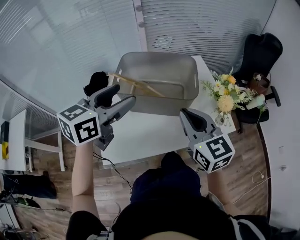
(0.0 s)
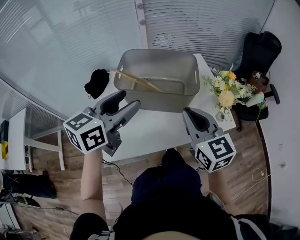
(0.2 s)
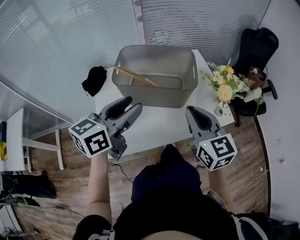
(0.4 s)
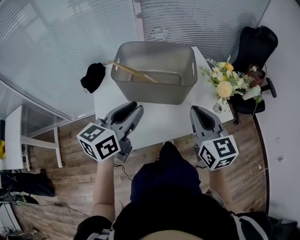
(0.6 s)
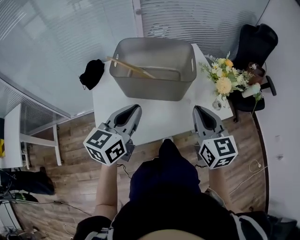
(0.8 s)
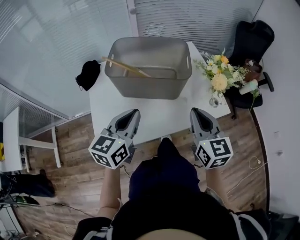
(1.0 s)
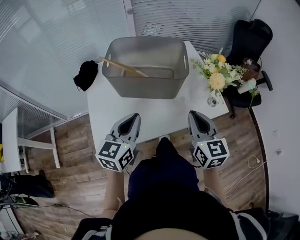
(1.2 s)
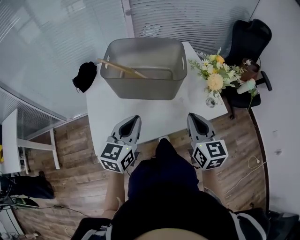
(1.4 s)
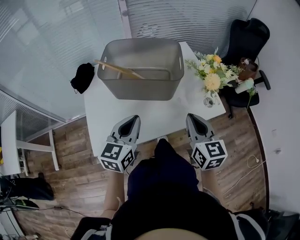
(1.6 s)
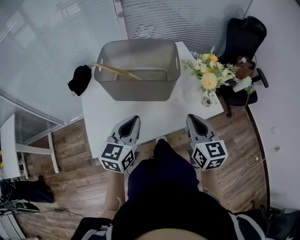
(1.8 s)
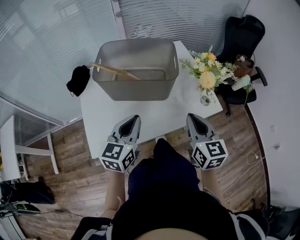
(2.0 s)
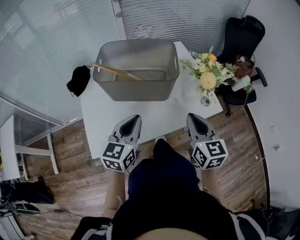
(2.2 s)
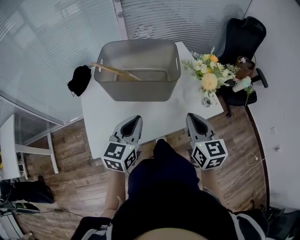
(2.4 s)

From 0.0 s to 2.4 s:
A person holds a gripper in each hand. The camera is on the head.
From 0.0 s to 1.2 s: The left gripper shifts approximately 15 cm downward, backward and to the right, and closes up. Meanwhile the right gripper goes approximately 10 cm to the right and downward.
From 1.2 s to 2.4 s: The grippers make only small movements.

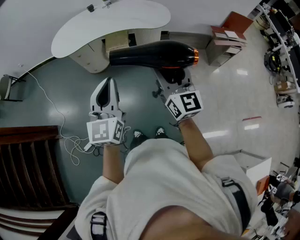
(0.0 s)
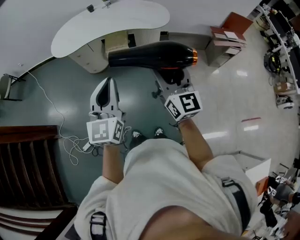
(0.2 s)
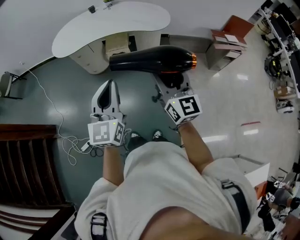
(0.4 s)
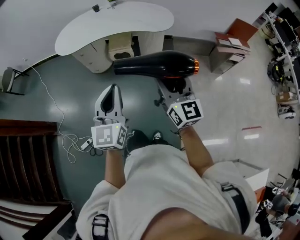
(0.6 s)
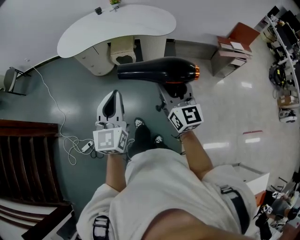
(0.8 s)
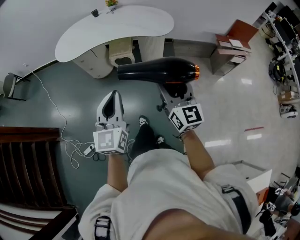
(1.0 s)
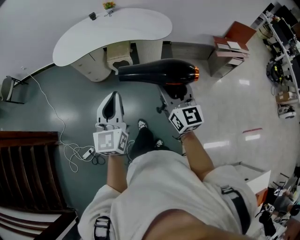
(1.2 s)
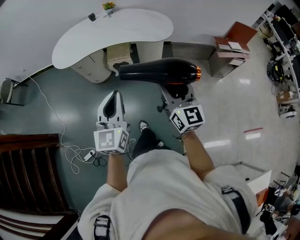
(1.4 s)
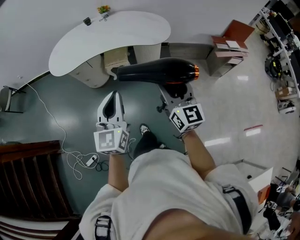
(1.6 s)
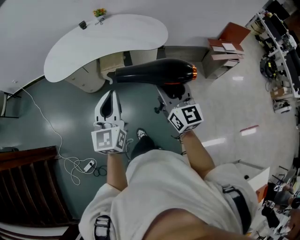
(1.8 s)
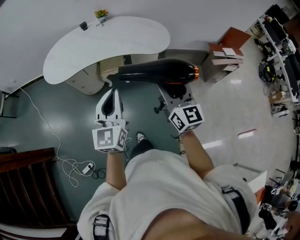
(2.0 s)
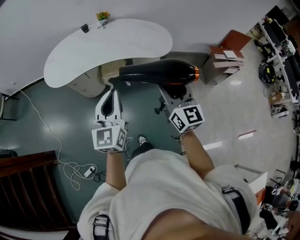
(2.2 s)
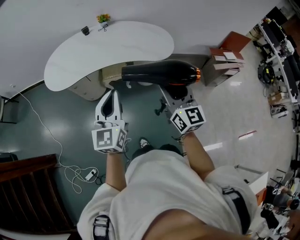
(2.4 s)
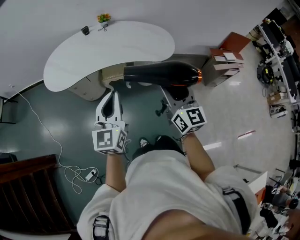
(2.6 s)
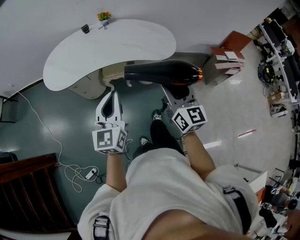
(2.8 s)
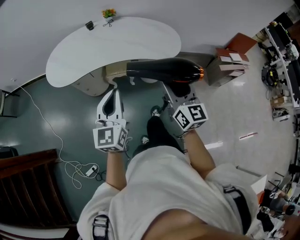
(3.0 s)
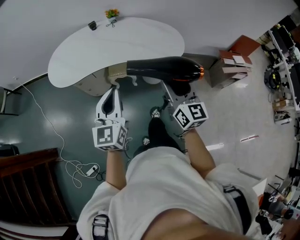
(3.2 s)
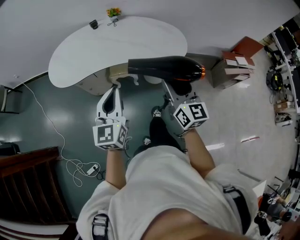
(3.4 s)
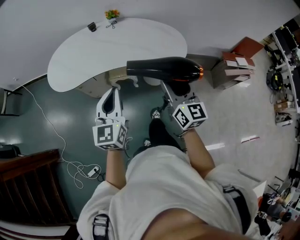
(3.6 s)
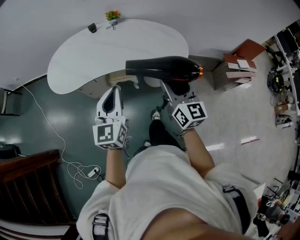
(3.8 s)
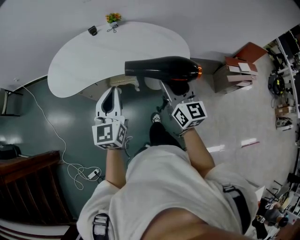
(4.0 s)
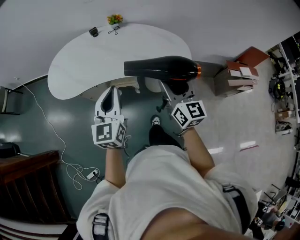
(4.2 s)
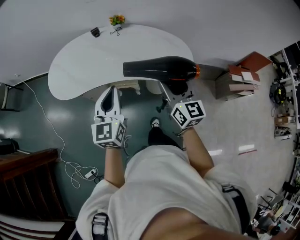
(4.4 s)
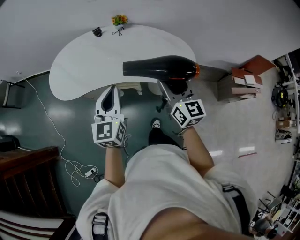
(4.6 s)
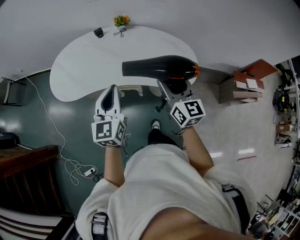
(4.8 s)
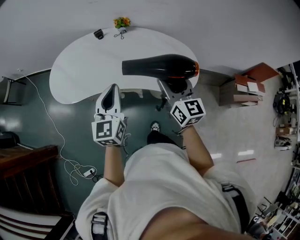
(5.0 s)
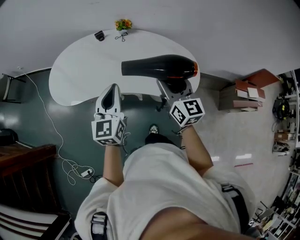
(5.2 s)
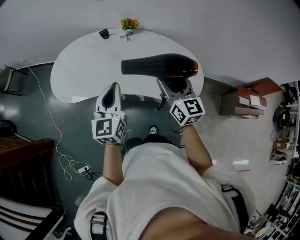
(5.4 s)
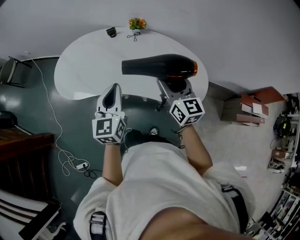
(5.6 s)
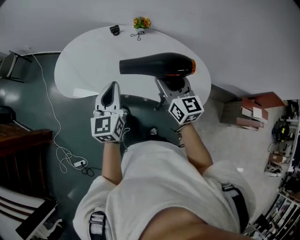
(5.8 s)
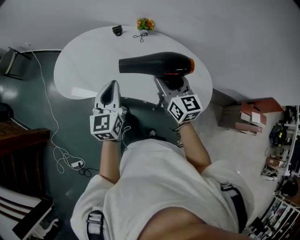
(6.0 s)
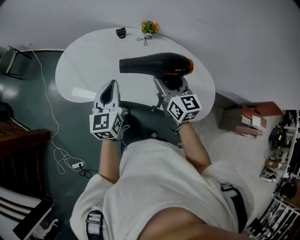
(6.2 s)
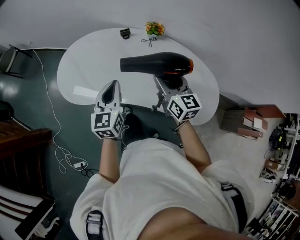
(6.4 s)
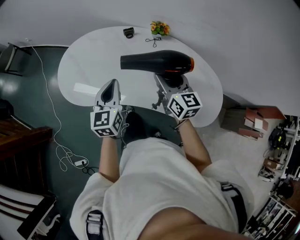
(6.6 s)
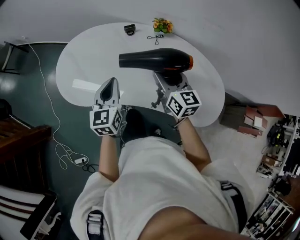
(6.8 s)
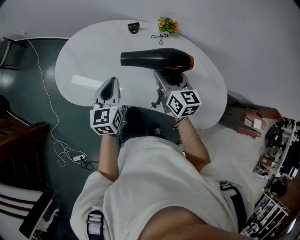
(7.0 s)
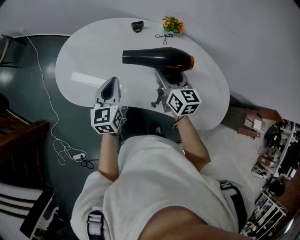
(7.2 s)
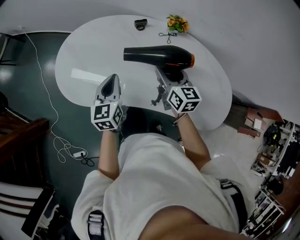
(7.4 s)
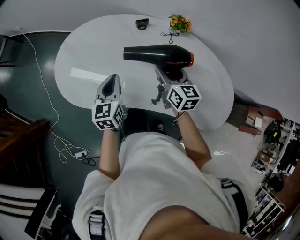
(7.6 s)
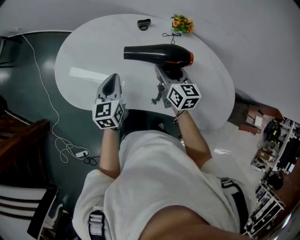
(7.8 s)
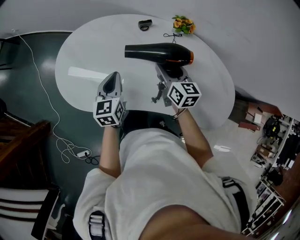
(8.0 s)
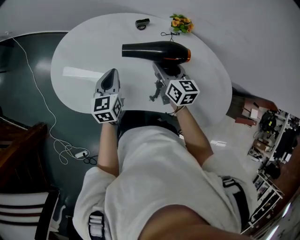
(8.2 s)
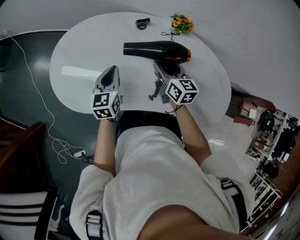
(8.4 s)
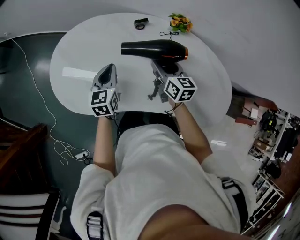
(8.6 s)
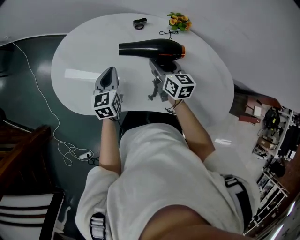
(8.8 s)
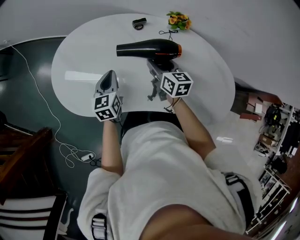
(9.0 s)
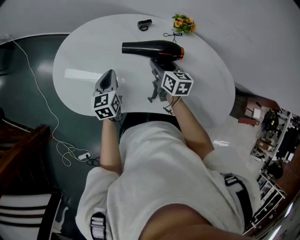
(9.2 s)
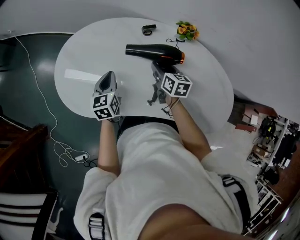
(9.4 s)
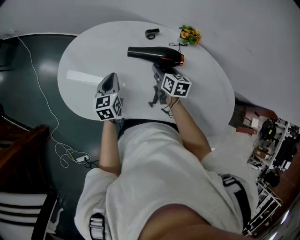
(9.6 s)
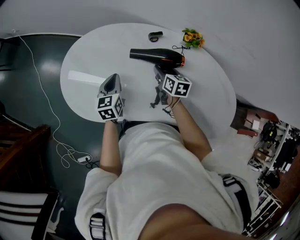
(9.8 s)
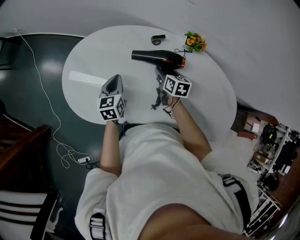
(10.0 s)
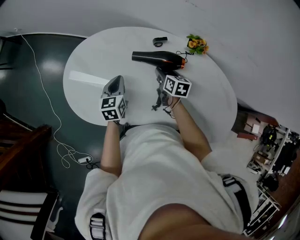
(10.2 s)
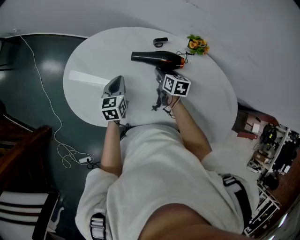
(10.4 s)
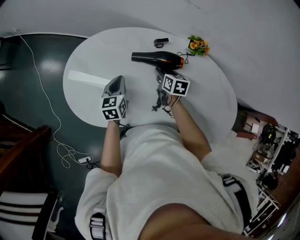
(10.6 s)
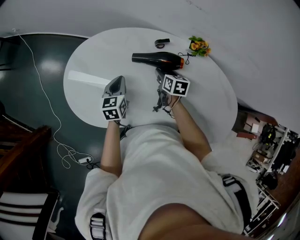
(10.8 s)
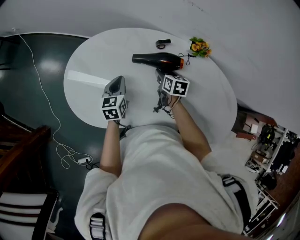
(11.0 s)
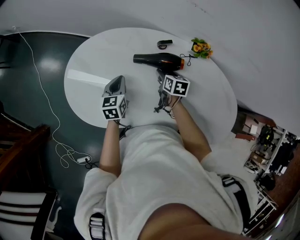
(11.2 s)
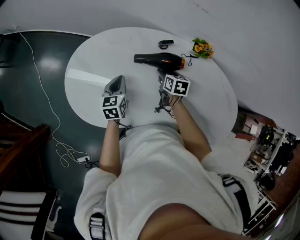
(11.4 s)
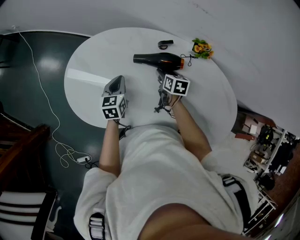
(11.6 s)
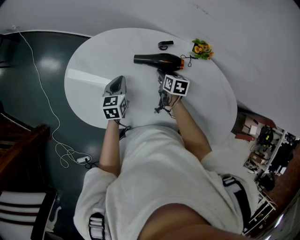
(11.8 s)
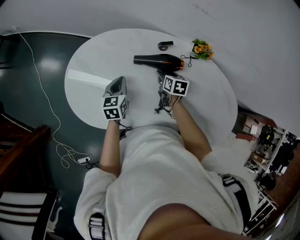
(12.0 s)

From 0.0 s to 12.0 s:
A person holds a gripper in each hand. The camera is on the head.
From 0.0 s to 1.6 s: The two grippers go approximately 10 cm forward.
From 1.6 s to 3.0 s: The left gripper goes roughly 20 cm forward and to the left. The right gripper shifts some 15 cm forward.
From 3.0 s to 4.4 s: The grippers both shift forward by approximately 20 cm.
From 4.4 s to 6.0 s: Both grippers travel together forward, approximately 20 cm.
From 6.0 s to 7.6 s: The right gripper is displaced forward, downward and to the left by roughly 30 cm. Meanwhile the left gripper moves forward, to the left and downward, roughly 30 cm.
From 7.6 s to 9.0 s: Both grippers move downward and forward, approximately 10 cm.
From 9.0 s to 10.4 s: The right gripper goes about 10 cm downward and forward. The left gripper is displaced forward by roughly 5 cm.
From 10.4 s to 12.0 s: The grippers stay close to where they were, moving slightly.

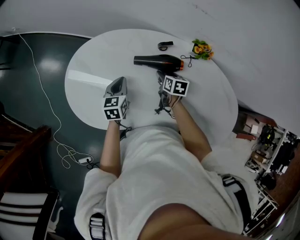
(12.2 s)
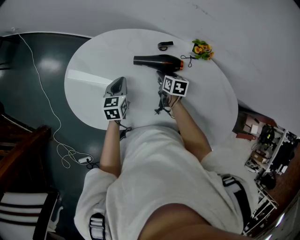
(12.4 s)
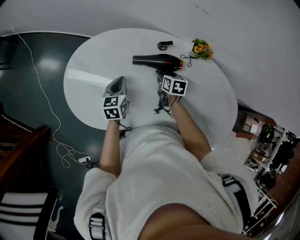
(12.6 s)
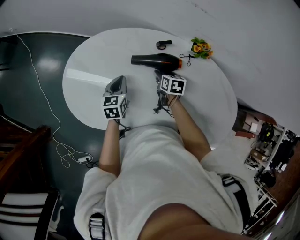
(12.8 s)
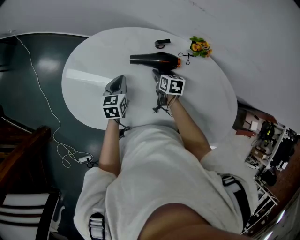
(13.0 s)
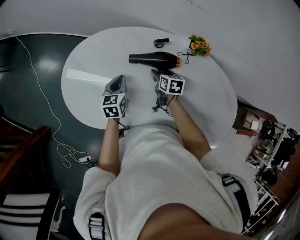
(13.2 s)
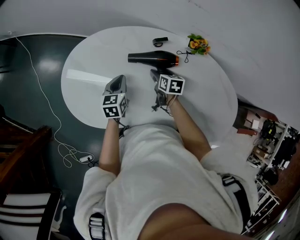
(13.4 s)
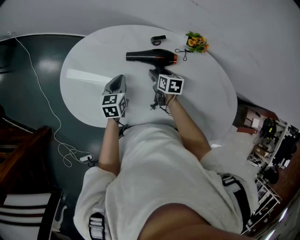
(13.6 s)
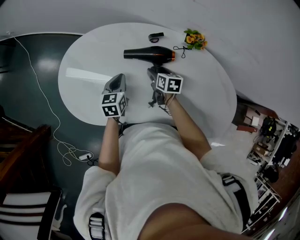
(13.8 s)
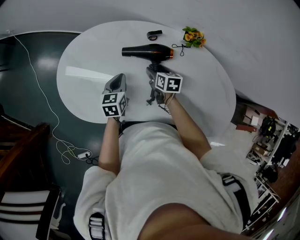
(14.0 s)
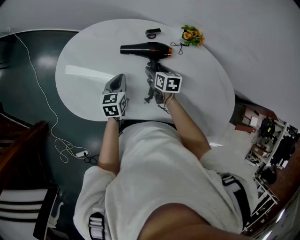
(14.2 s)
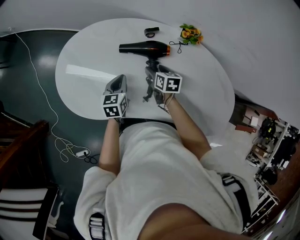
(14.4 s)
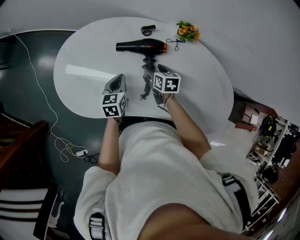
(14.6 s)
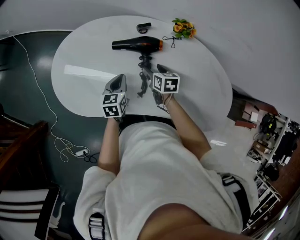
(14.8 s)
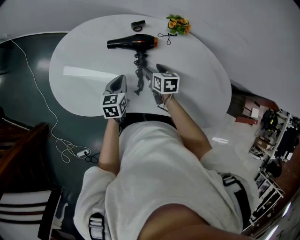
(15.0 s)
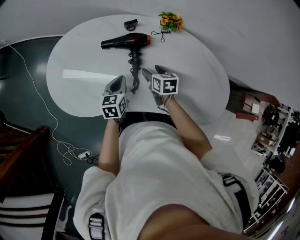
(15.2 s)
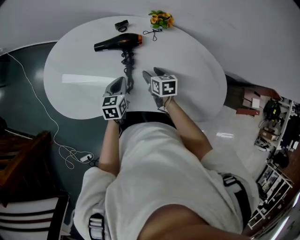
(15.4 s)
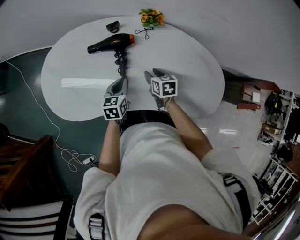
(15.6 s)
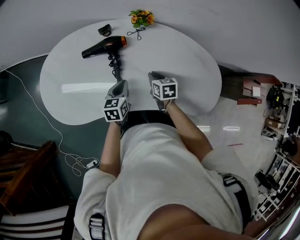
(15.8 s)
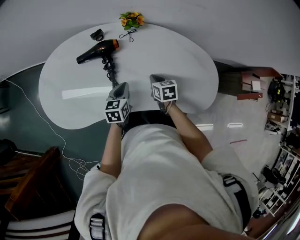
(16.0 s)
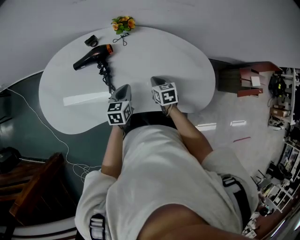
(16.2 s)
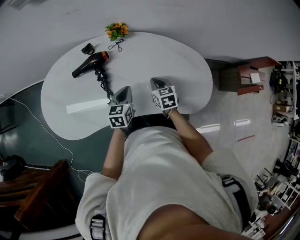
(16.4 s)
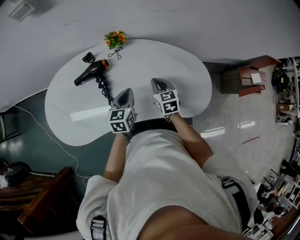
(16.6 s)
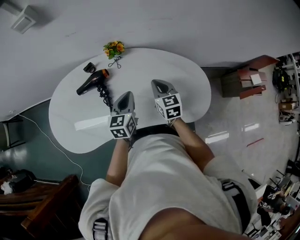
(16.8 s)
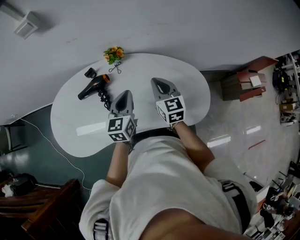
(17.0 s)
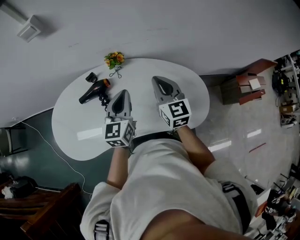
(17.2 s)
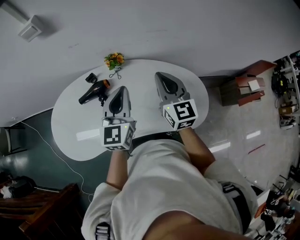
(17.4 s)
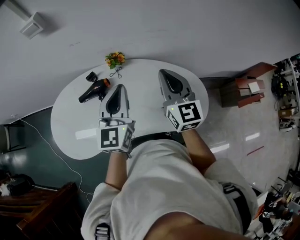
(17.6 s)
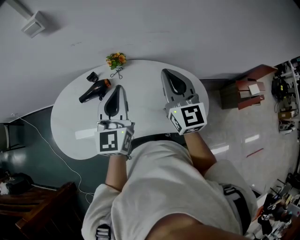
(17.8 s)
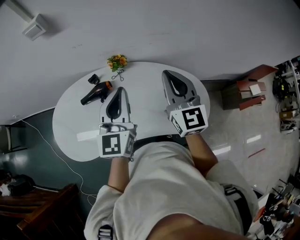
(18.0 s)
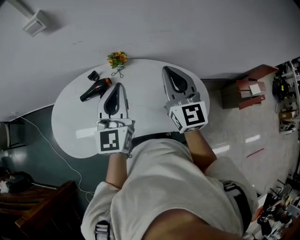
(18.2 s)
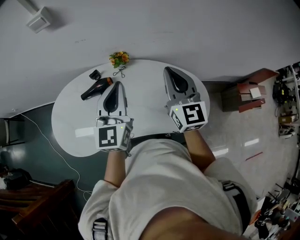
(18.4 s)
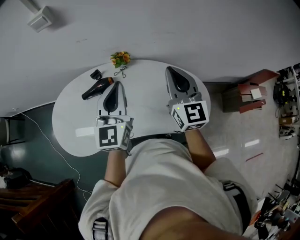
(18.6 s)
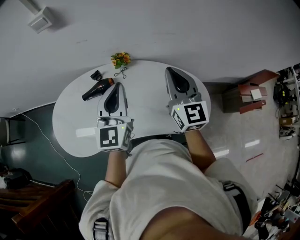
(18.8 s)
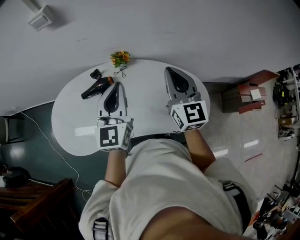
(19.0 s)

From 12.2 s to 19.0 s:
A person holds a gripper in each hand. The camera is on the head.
From 12.2 s to 13.6 s: There are only small adjustments of the grippers.
From 13.6 s to 15.0 s: The left gripper travels to the right and backward by approximately 10 cm. Meanwhile the right gripper moves backward, some 5 cm.
From 15.0 s to 16.2 s: The right gripper shifts approximately 20 cm to the right and backward, and closes up. Meanwhile the left gripper is displaced to the right by roughly 20 cm.
From 16.2 s to 17.6 s: The grippers both shift upward by some 35 cm. The right gripper angles its fingers upward, by about 50 degrees; the left gripper tilts its fingers about 30 degrees upward.
From 17.6 s to 19.0 s: The grippers move only a little.

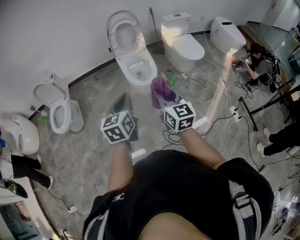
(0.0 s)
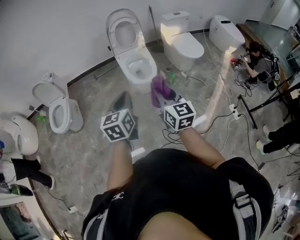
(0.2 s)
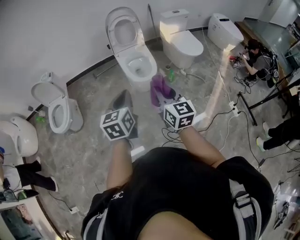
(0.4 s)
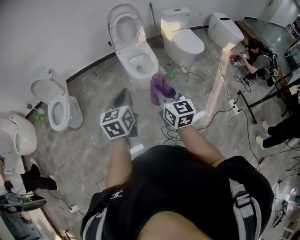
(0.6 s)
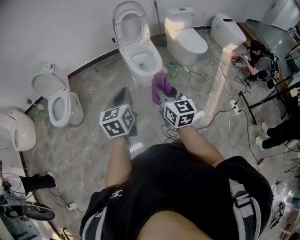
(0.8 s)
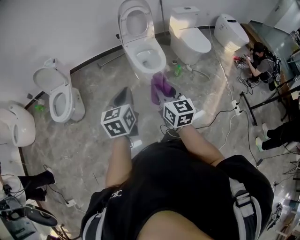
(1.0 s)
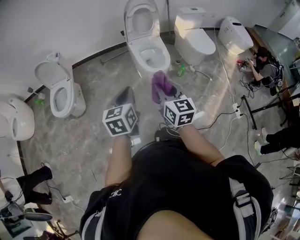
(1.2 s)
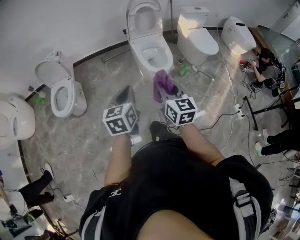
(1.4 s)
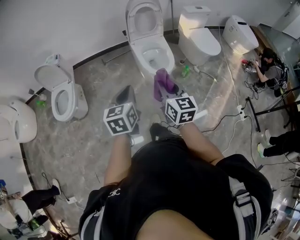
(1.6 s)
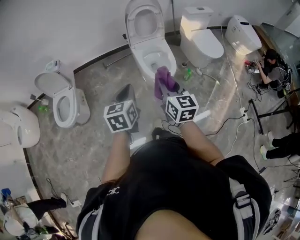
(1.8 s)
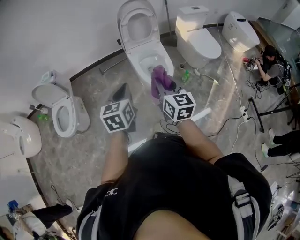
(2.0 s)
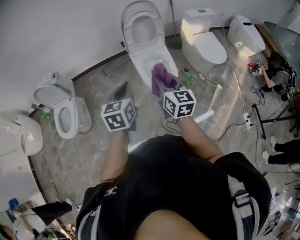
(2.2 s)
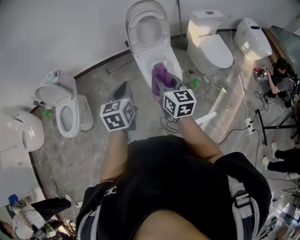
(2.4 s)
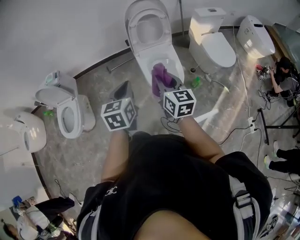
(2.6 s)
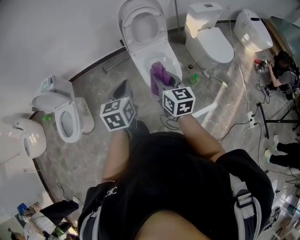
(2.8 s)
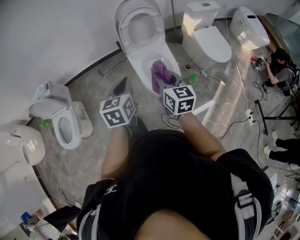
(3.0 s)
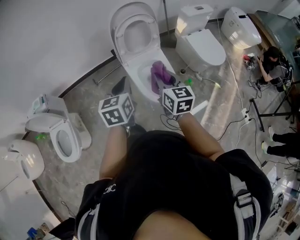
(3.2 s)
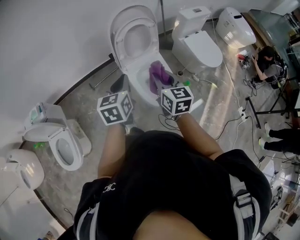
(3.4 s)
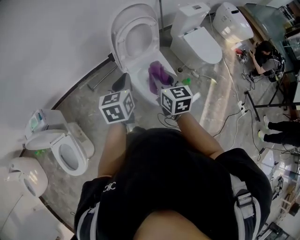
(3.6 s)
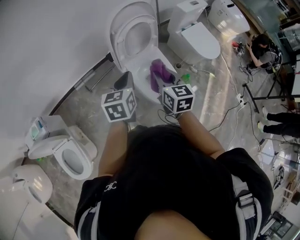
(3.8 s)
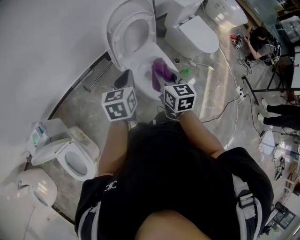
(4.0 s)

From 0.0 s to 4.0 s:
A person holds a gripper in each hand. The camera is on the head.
From 0.0 s to 1.4 s: The grippers both shift to the left by about 20 cm.
From 1.4 s to 2.6 s: Both grippers move forward, some 35 cm.
From 2.6 s to 4.0 s: The right gripper ends up roughly 30 cm from where it was, and swivels roughly 30 degrees, while the left gripper moves approximately 35 cm, and rotates about 30 degrees.
